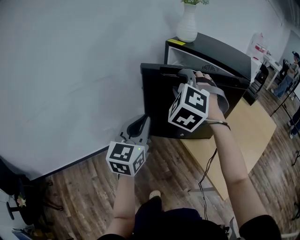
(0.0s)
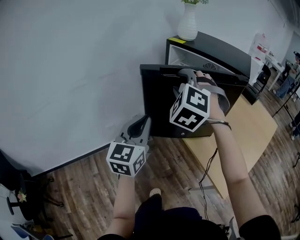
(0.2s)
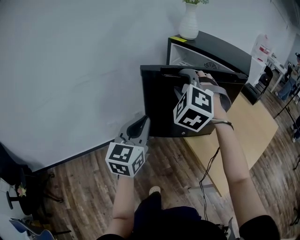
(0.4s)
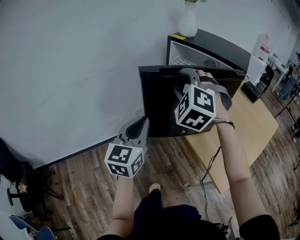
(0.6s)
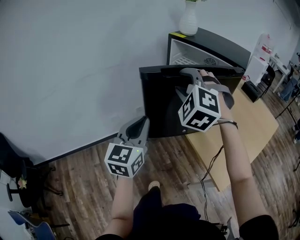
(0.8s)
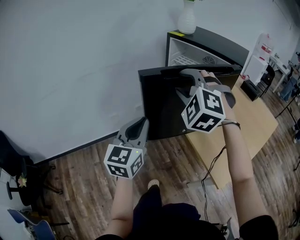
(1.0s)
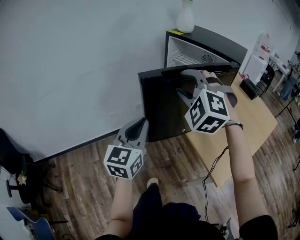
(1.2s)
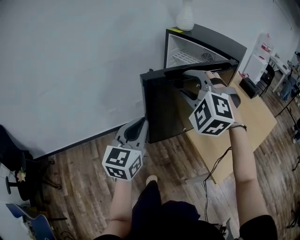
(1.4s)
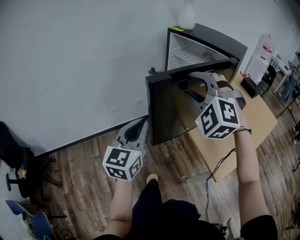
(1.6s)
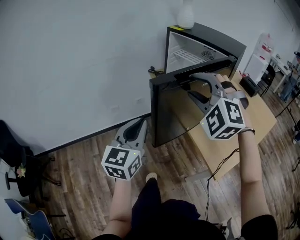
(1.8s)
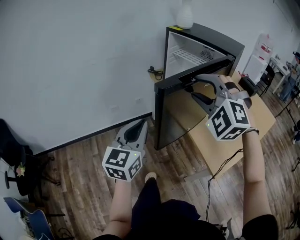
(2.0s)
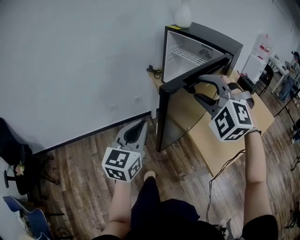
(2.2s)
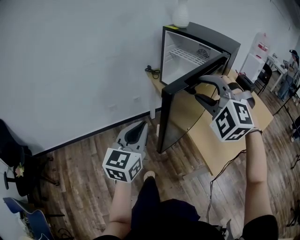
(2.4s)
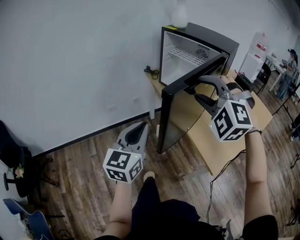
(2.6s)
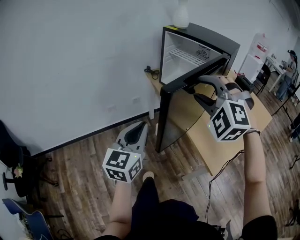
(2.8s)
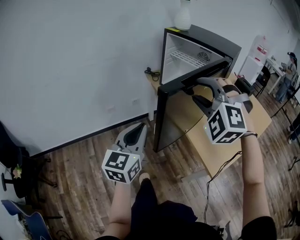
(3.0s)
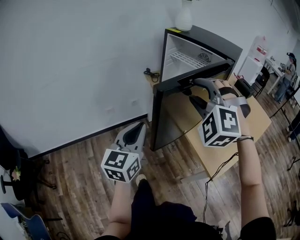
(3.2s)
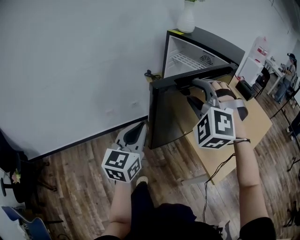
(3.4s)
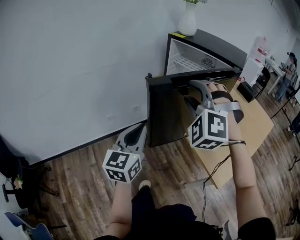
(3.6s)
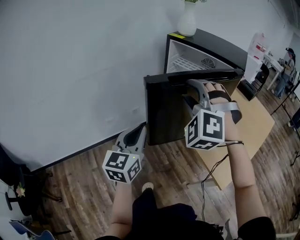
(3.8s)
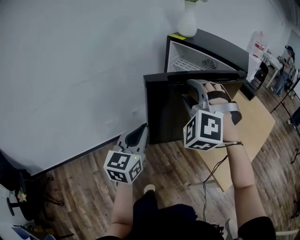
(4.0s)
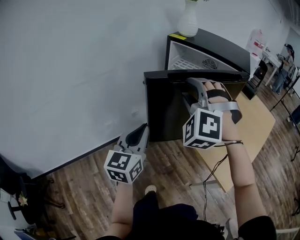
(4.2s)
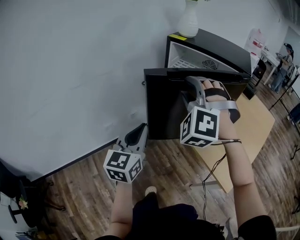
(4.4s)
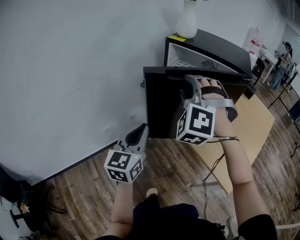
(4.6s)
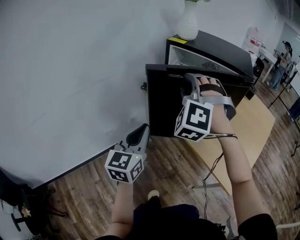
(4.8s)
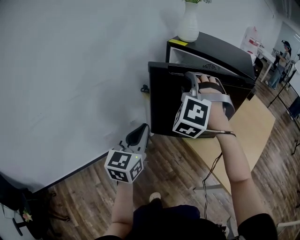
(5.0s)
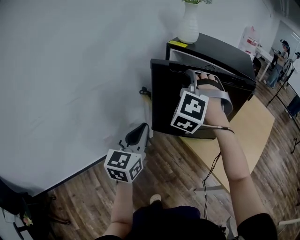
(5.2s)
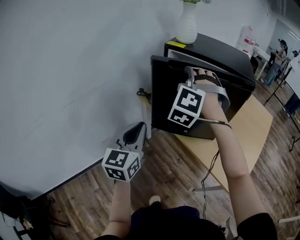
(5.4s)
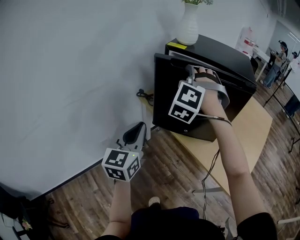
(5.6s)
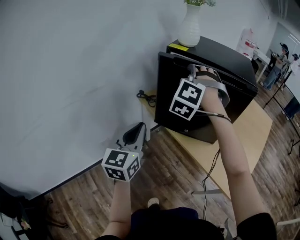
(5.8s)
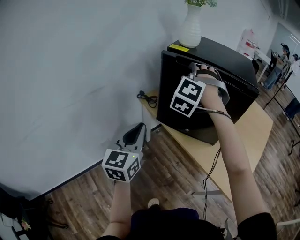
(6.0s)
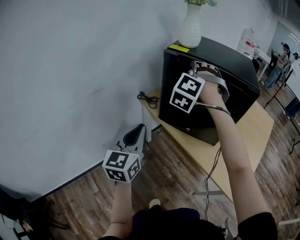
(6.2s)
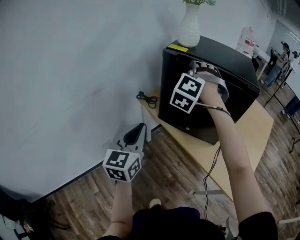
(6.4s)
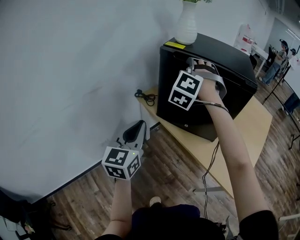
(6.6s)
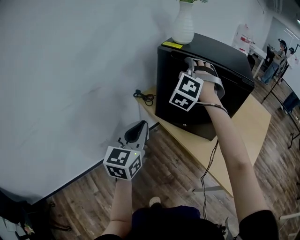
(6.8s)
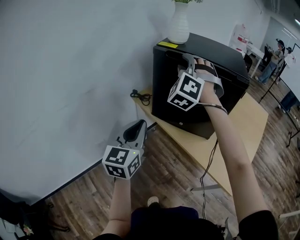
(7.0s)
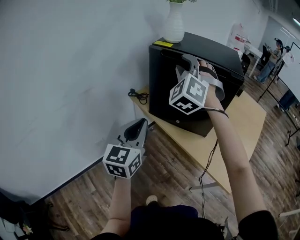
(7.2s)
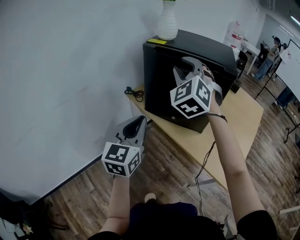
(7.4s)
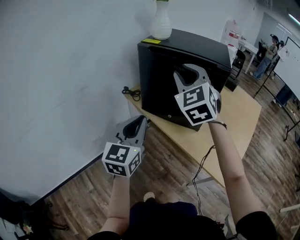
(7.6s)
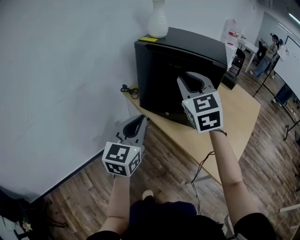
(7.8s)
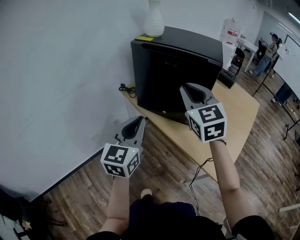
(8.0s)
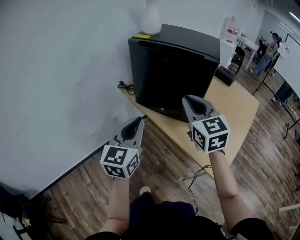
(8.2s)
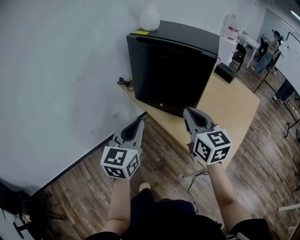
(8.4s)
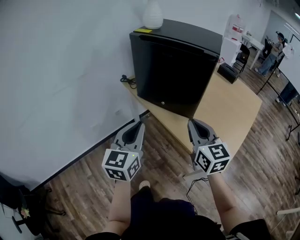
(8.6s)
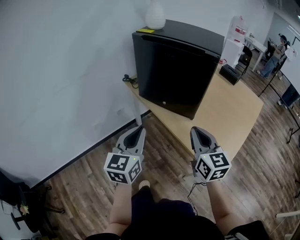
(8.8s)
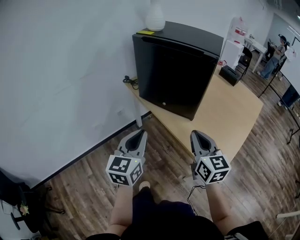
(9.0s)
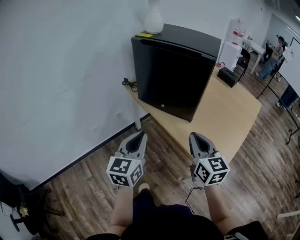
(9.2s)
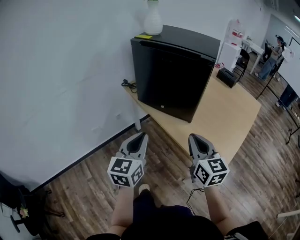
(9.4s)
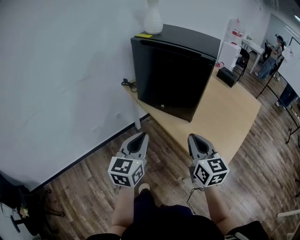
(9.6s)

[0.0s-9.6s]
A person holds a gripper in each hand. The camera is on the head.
0.0s to 1.6s: The grippers both shift backward by about 20 cm. The right gripper rotates approximately 20 degrees.
3.2s to 4.8s: Both grippers travel together forward and to the left, about 20 cm. The right gripper turns by about 20 degrees.
4.8s to 6.4s: The right gripper moves forward, roughly 15 cm. The left gripper is displaced forward and to the left by roughly 10 cm.
6.4s to 8.0s: The right gripper shifts approximately 25 cm backward and to the right, rotates around the line of its fingers by some 60 degrees, clockwise from behind, and closes. The left gripper moves to the right and backward, about 15 cm.
8.0s to 9.6s: The right gripper goes some 20 cm backward, downward and to the right, and rotates about 30 degrees. The left gripper moves backward and downward, approximately 10 cm.

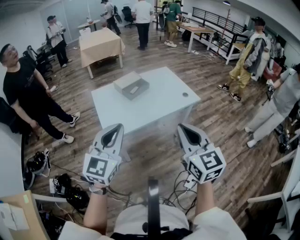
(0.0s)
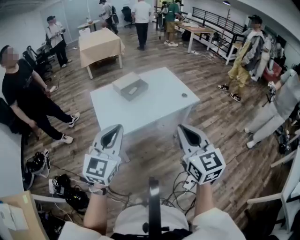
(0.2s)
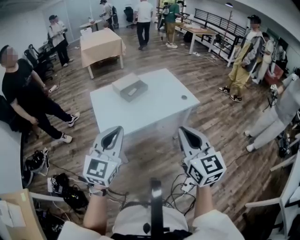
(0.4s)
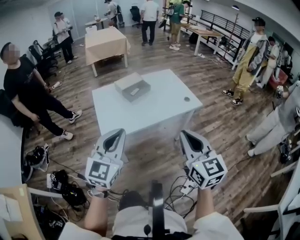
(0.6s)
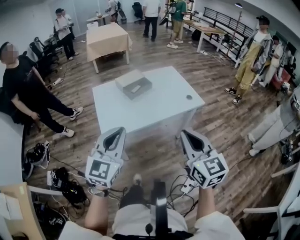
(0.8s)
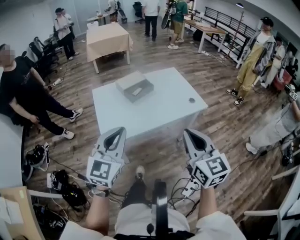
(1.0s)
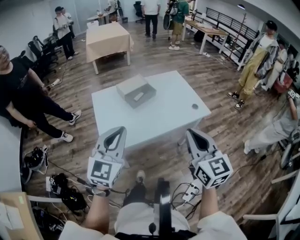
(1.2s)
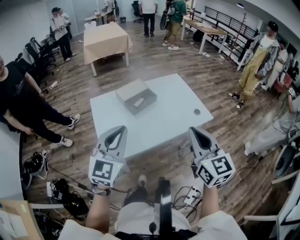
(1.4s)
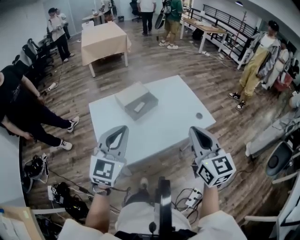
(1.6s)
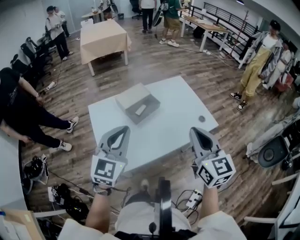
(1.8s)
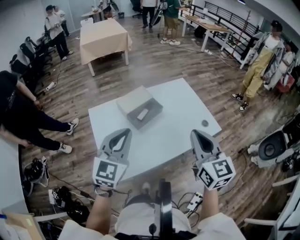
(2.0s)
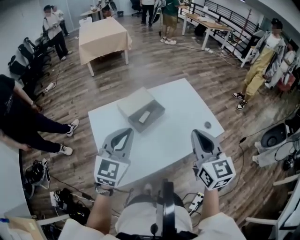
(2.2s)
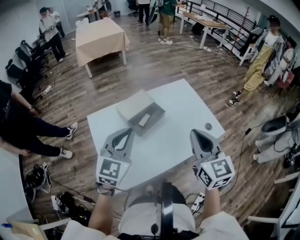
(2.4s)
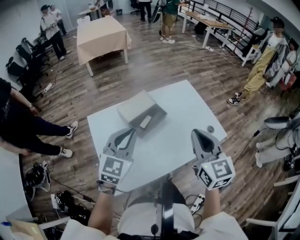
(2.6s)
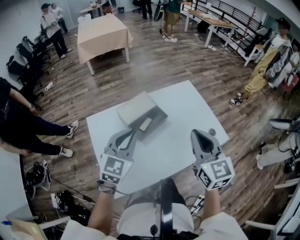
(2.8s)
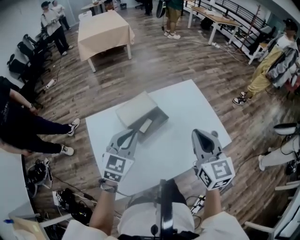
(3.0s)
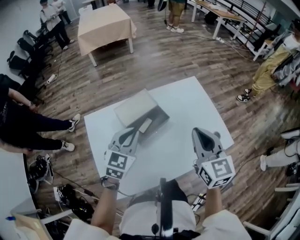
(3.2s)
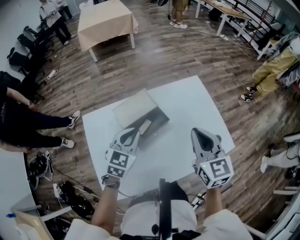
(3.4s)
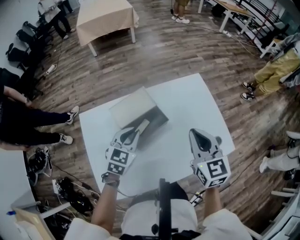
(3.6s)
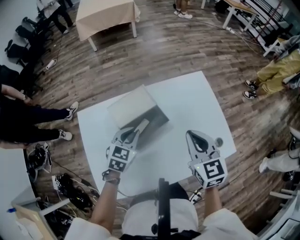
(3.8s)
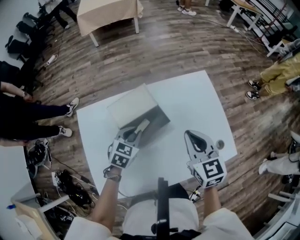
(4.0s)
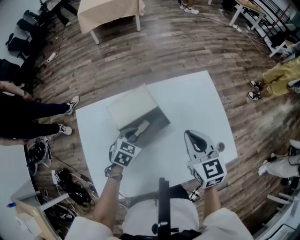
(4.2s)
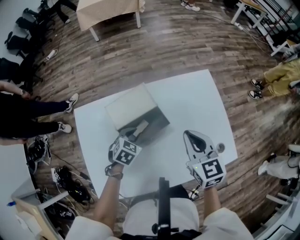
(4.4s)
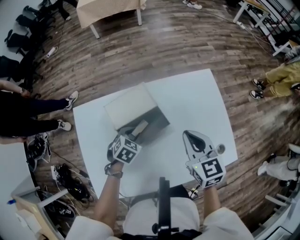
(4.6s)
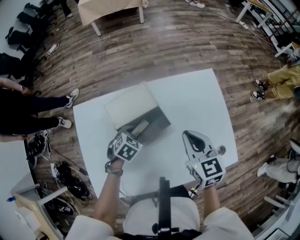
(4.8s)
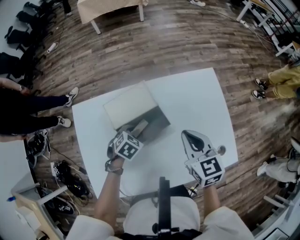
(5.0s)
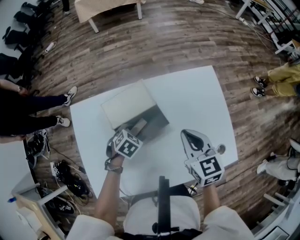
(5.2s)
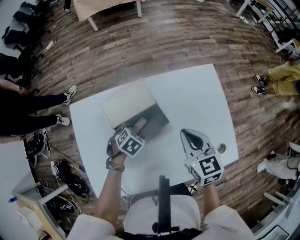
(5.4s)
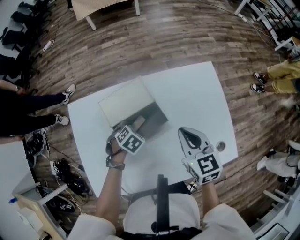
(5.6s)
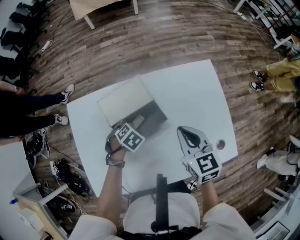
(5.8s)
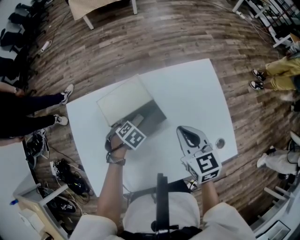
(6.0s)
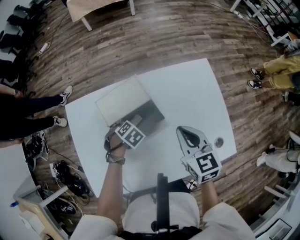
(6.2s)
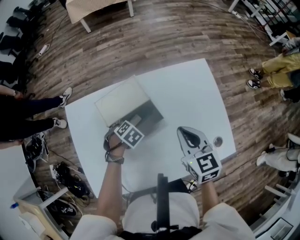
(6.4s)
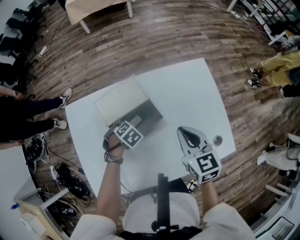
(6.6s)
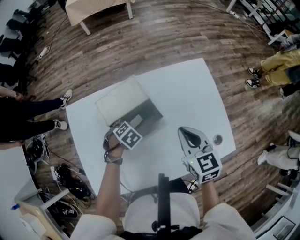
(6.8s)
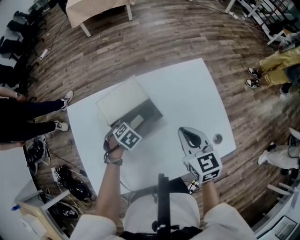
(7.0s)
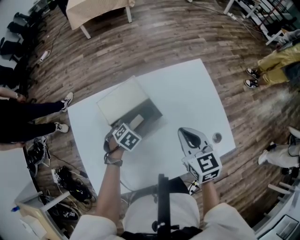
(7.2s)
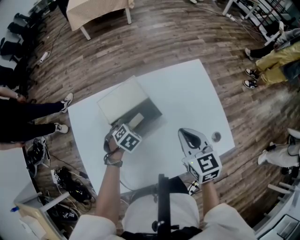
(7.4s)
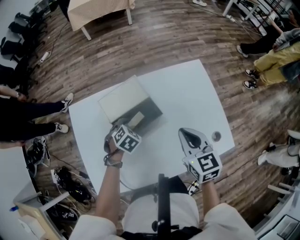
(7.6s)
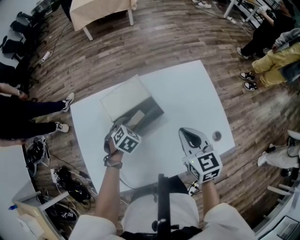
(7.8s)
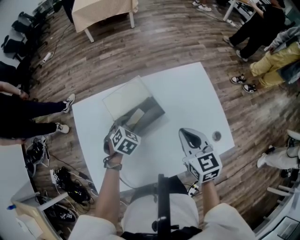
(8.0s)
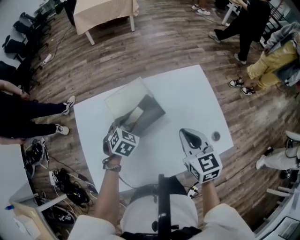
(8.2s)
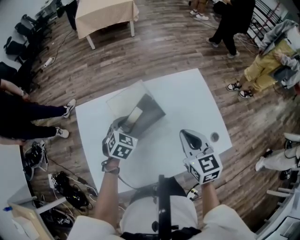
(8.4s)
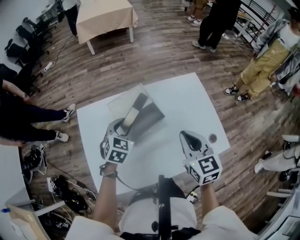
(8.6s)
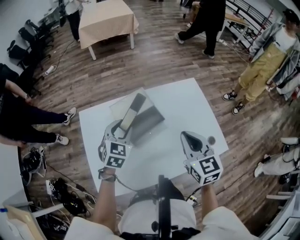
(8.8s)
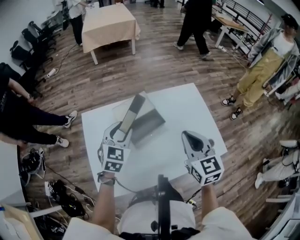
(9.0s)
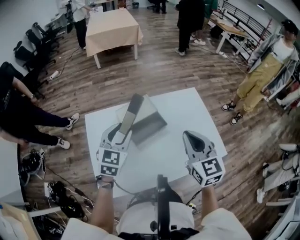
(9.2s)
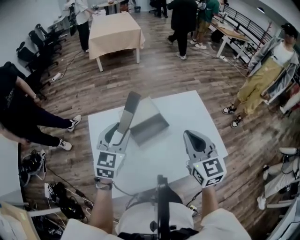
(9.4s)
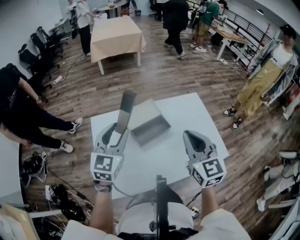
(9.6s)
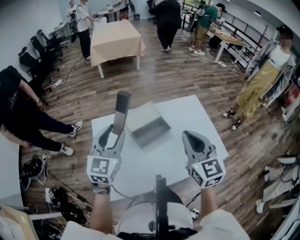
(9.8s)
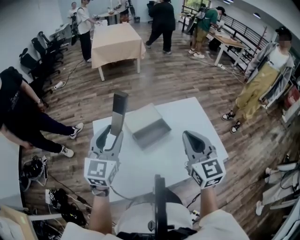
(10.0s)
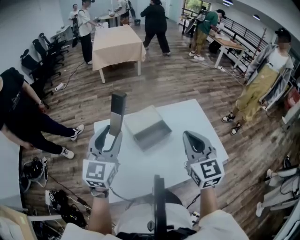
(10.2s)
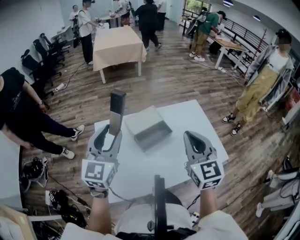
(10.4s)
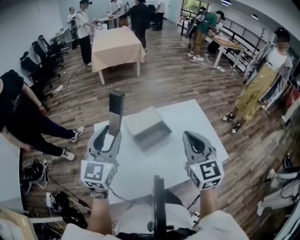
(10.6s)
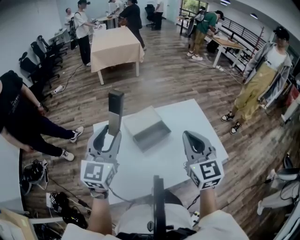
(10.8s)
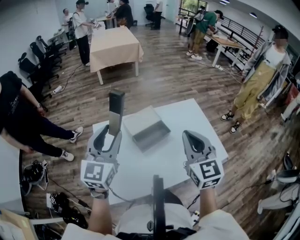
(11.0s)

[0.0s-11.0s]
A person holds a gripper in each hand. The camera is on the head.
0.0s to 1.6s: Both grippers move forward, roughly 25 cm.
1.6s to 3.2s: The right gripper goes approximately 25 cm forward. Meanwhile the left gripper goes about 30 cm forward and downward.
3.2s to 4.8s: The left gripper travels downward by some 25 cm, tilts its fingers some 40 degrees downward, and opens up, while the right gripper heads downward and forward, covering roughly 20 cm, and swivels about 20 degrees.
4.8s to 6.2s: The left gripper rotates some 20 degrees.
6.2s to 7.8s: The left gripper travels upward by roughly 5 cm, and turns by some 20 degrees, while the right gripper moves roughly 5 cm.
7.8s to 9.4s: The right gripper shifts approximately 20 cm upward and backward, and rotates roughly 20 degrees; the left gripper moves upward, about 30 cm, and tips its fingers upward by about 50 degrees.
9.4s to 11.0s: The right gripper is displaced upward by about 5 cm, while the left gripper is displaced upward and backward by approximately 10 cm.

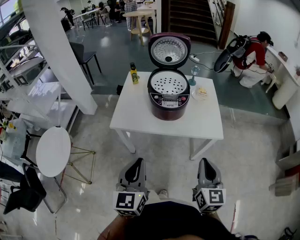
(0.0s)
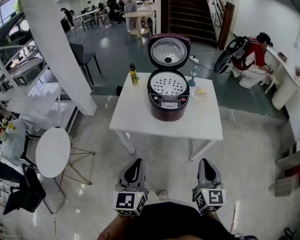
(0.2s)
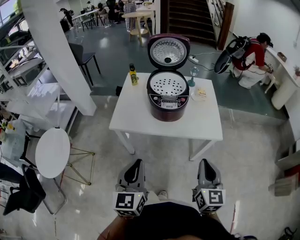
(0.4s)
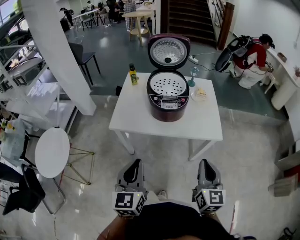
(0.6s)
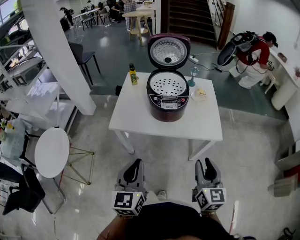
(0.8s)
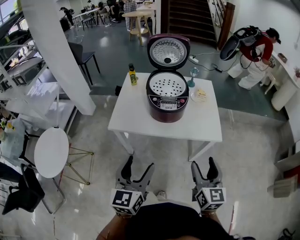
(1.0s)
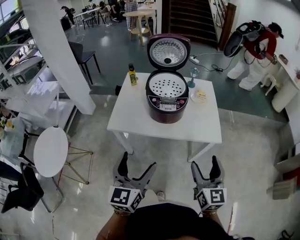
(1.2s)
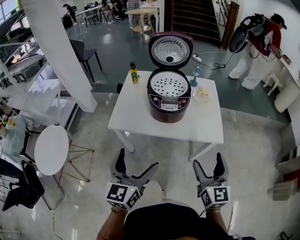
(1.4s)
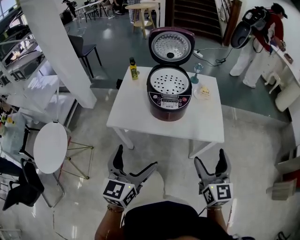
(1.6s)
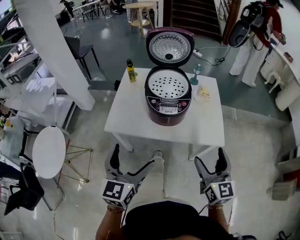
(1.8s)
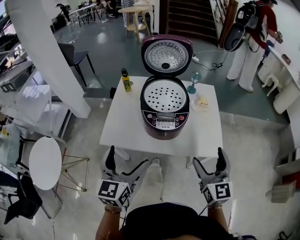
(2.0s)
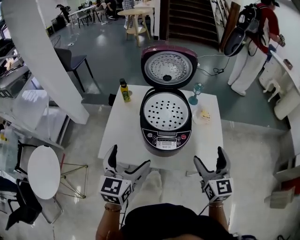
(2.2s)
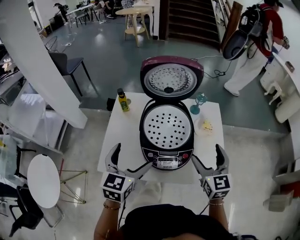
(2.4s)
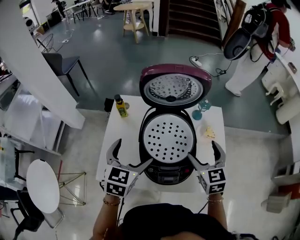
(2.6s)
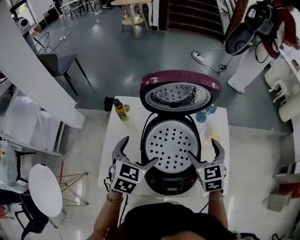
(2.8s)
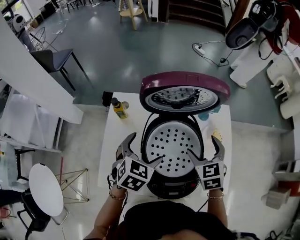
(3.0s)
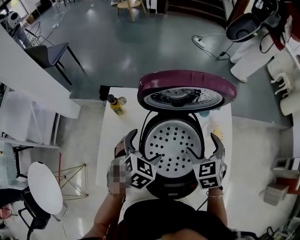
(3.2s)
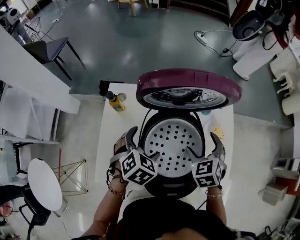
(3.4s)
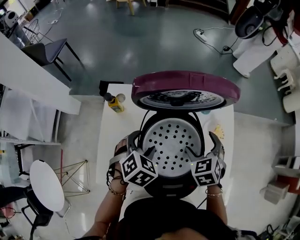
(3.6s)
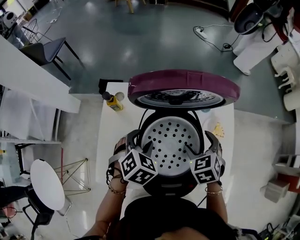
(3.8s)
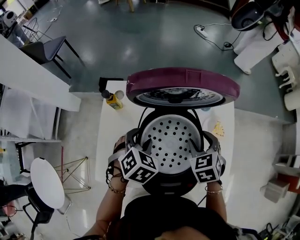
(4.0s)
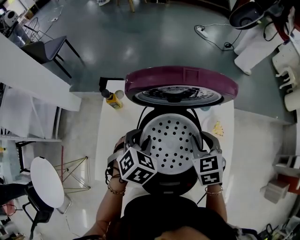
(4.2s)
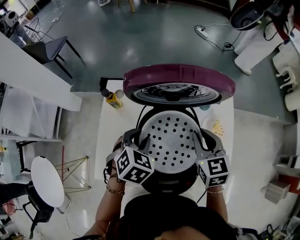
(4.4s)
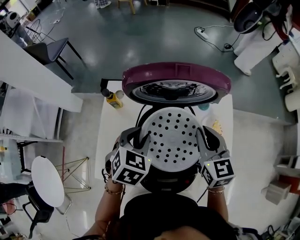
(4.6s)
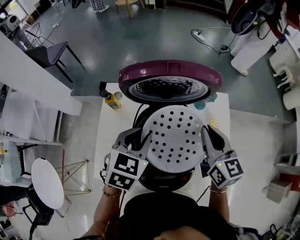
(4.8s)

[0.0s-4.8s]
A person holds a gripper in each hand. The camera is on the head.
0.0s to 1.6s: The two grippers go about 5 cm forward. The left gripper opens up, while the right gripper opens.
1.6s to 3.2s: Both grippers are carried forward, approximately 50 cm. The right gripper tips its fingers downward by some 40 degrees, while the left gripper tilts its fingers some 40 degrees downward.
3.2s to 4.8s: Both grippers travel together upward, about 10 cm. The left gripper closes, while the right gripper turns by some 40 degrees, and closes up.
